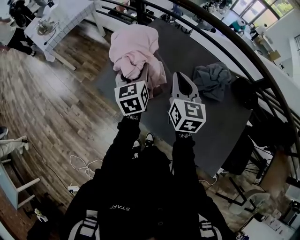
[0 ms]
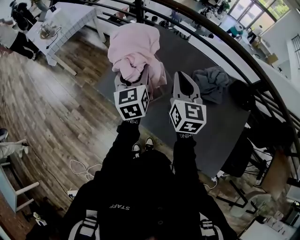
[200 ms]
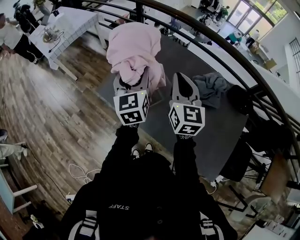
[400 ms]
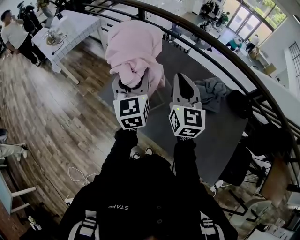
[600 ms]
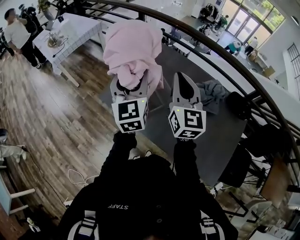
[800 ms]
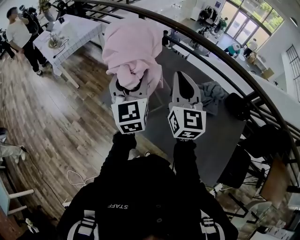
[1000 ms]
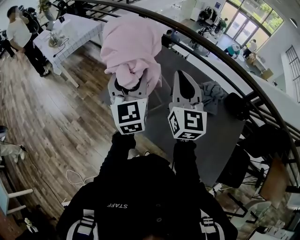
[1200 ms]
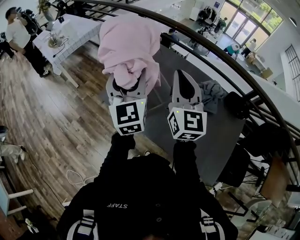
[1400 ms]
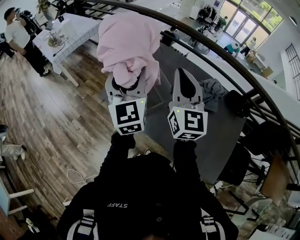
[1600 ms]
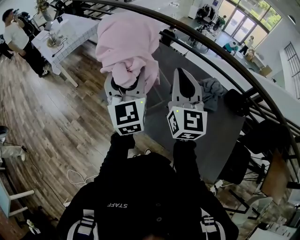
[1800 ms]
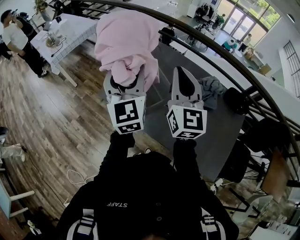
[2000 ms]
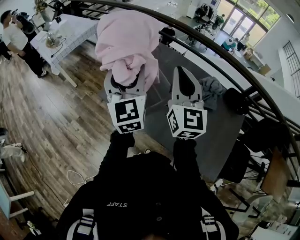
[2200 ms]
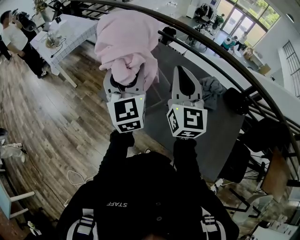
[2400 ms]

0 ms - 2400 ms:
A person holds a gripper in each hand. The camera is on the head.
0 ms - 1200 ms: The left gripper goes roughly 20 cm upward and backward, and turns by about 30 degrees. Meanwhile the right gripper shifts about 15 cm upward, and turns by some 20 degrees.
1200 ms - 2400 ms: There are only small adjustments of the grippers.

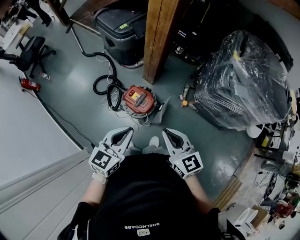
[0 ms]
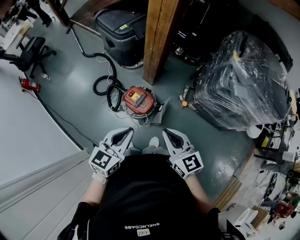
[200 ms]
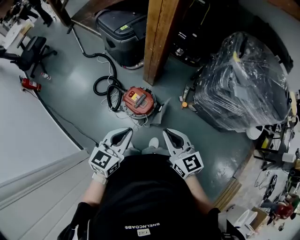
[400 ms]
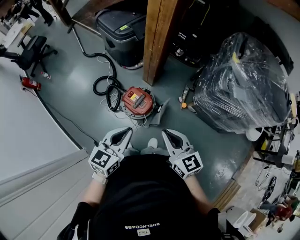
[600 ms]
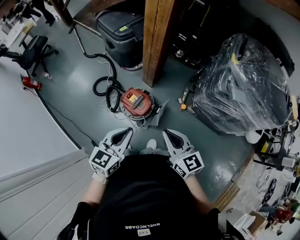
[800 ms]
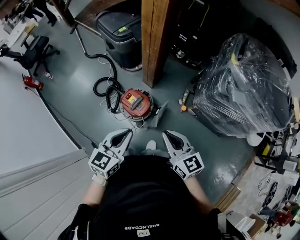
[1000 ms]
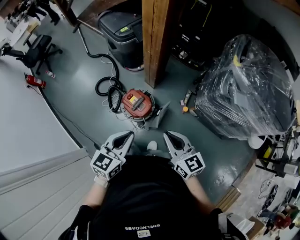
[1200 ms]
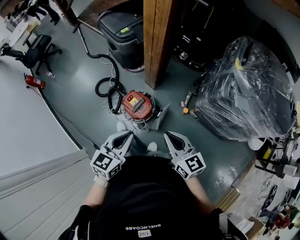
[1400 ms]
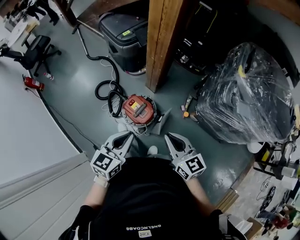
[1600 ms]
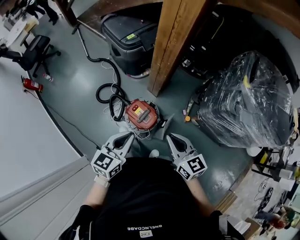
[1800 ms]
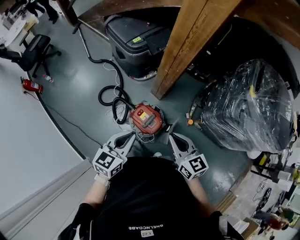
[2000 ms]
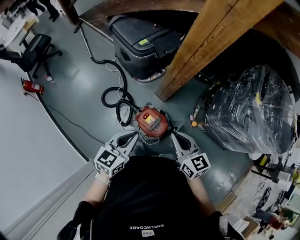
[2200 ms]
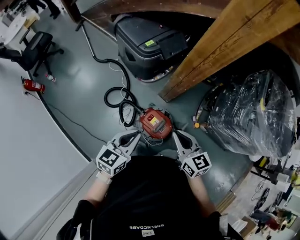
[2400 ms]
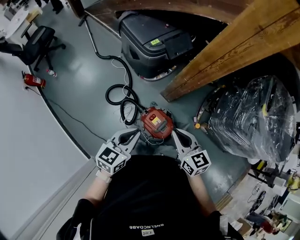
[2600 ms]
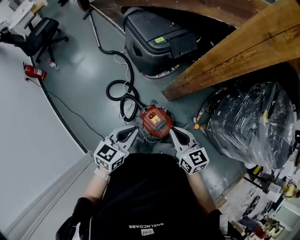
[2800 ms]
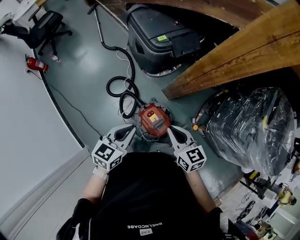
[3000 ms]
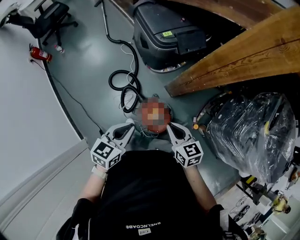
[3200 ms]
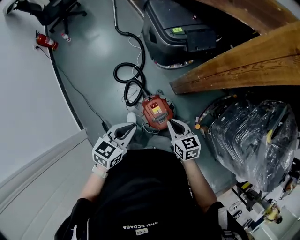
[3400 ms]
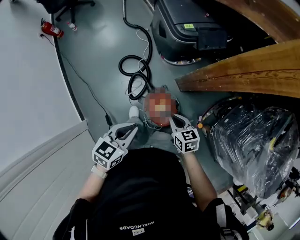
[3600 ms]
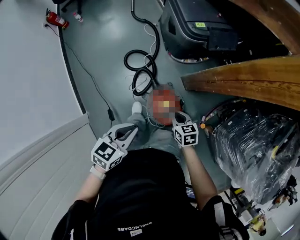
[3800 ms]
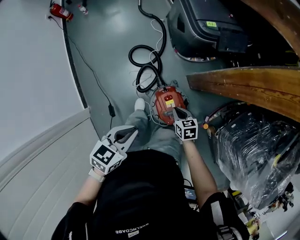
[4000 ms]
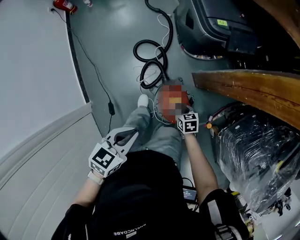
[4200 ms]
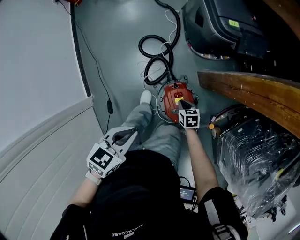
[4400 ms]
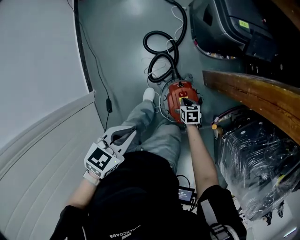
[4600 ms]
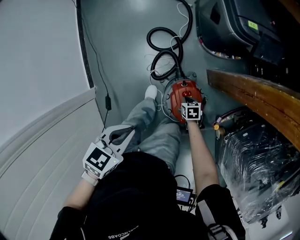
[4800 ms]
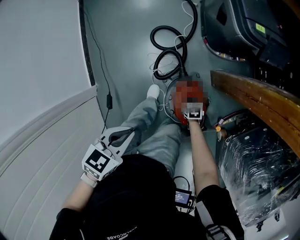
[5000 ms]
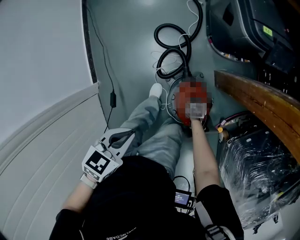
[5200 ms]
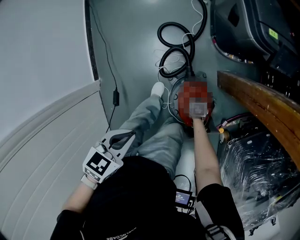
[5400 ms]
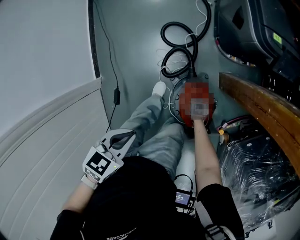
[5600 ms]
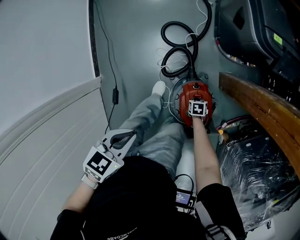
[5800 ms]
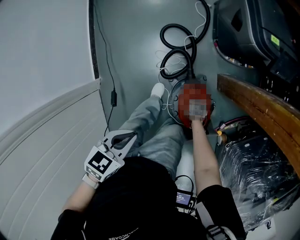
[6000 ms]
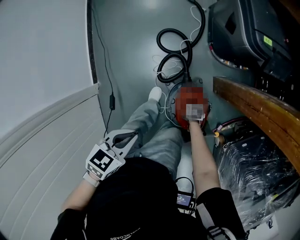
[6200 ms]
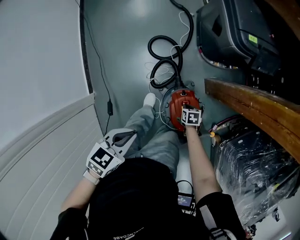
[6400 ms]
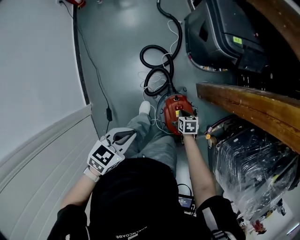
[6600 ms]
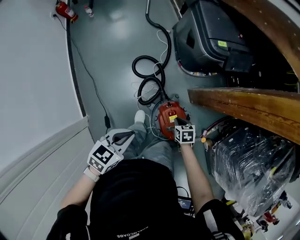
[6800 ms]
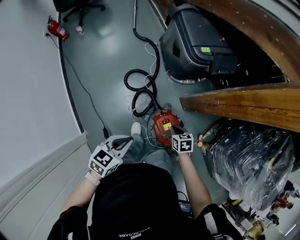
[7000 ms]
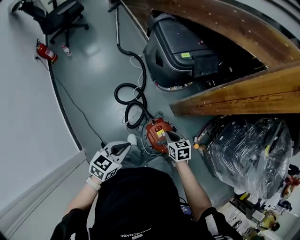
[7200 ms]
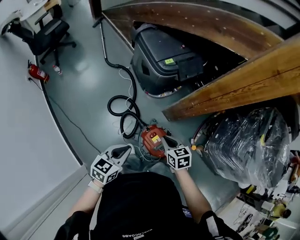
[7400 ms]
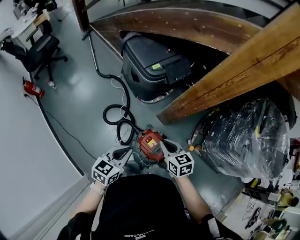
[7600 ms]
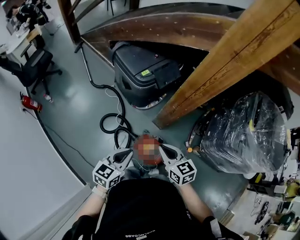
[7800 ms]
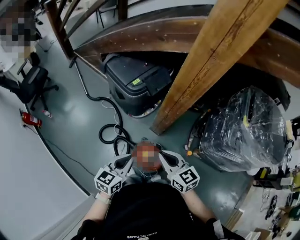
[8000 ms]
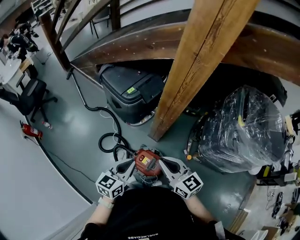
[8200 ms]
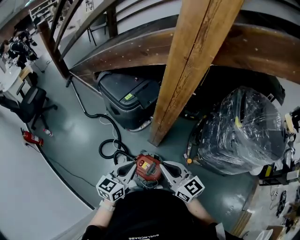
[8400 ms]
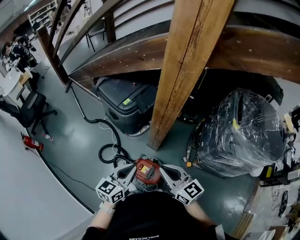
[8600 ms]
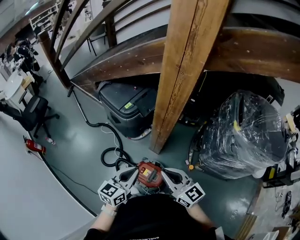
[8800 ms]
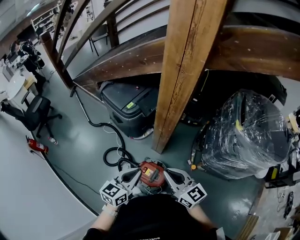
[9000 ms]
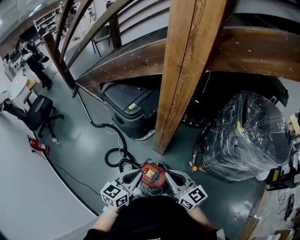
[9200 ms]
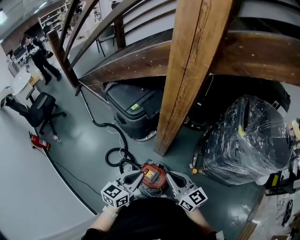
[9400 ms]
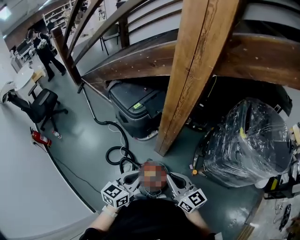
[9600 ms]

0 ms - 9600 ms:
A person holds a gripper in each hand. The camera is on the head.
0 ms - 1600 ms: Both grippers move forward, some 5 cm.
1600 ms - 3200 ms: The right gripper moves forward and to the left, roughly 30 cm, and swivels approximately 20 degrees. The left gripper moves to the left and forward, approximately 25 cm.
3200 ms - 4800 ms: The left gripper travels downward, to the left and backward by some 20 cm, and swivels about 20 degrees. Meanwhile the right gripper goes approximately 40 cm downward, and points its fingers about 40 degrees further downward.
4800 ms - 6400 ms: The right gripper goes downward and returns, approximately 10 cm each way.
6400 ms - 8000 ms: The right gripper is displaced upward by roughly 60 cm, and tips its fingers upward by roughly 60 degrees, while the left gripper moves upward, roughly 20 cm, and rotates approximately 40 degrees.
8000 ms - 9600 ms: The left gripper heads to the right and upward, covering approximately 10 cm, while the right gripper moves to the right, some 10 cm.

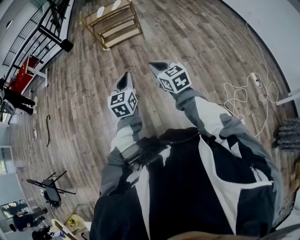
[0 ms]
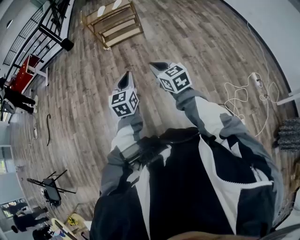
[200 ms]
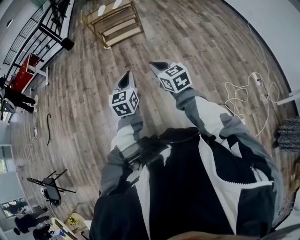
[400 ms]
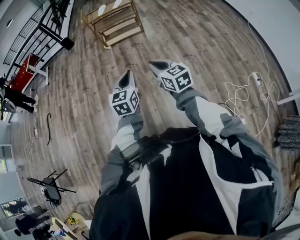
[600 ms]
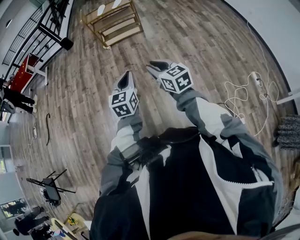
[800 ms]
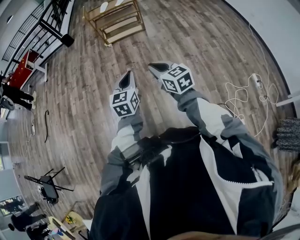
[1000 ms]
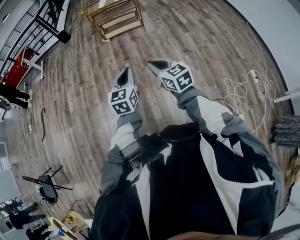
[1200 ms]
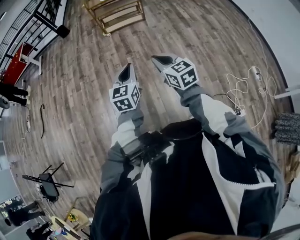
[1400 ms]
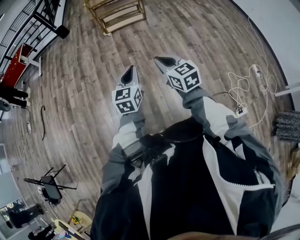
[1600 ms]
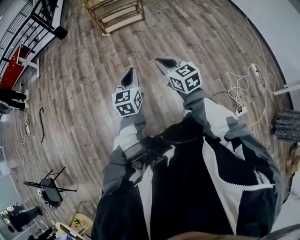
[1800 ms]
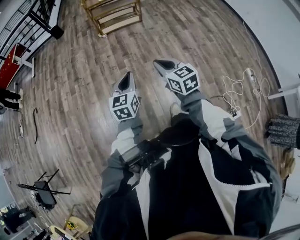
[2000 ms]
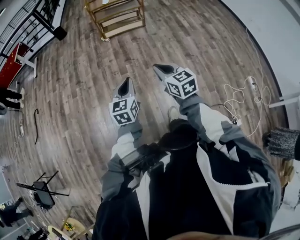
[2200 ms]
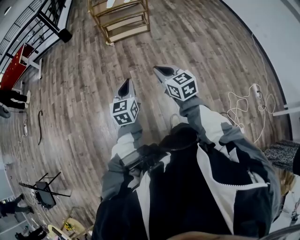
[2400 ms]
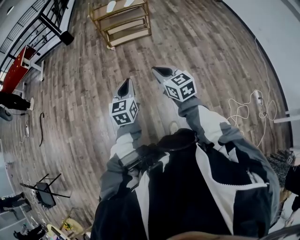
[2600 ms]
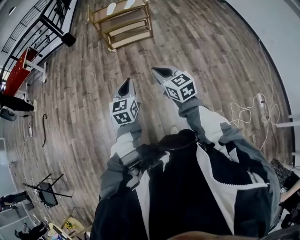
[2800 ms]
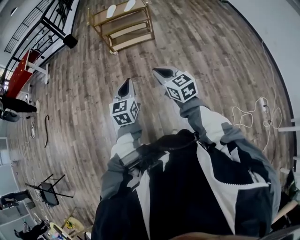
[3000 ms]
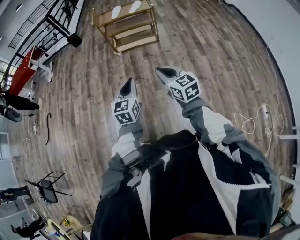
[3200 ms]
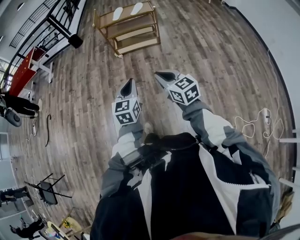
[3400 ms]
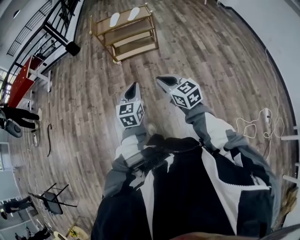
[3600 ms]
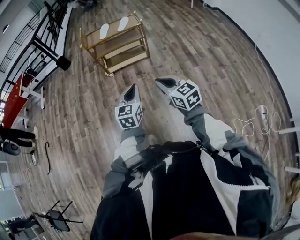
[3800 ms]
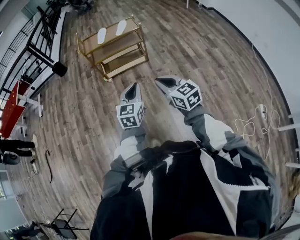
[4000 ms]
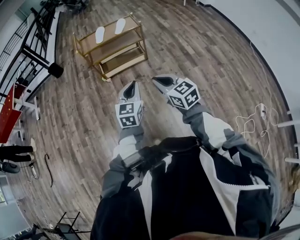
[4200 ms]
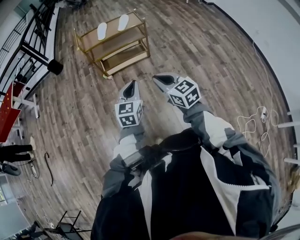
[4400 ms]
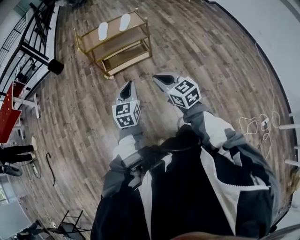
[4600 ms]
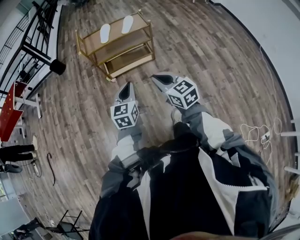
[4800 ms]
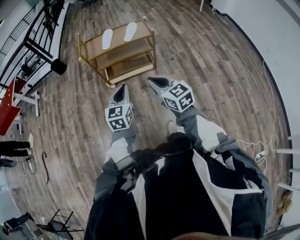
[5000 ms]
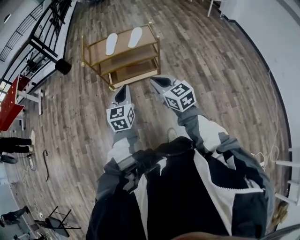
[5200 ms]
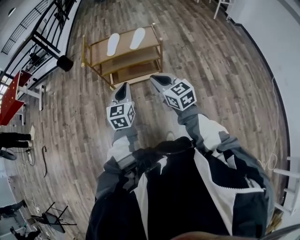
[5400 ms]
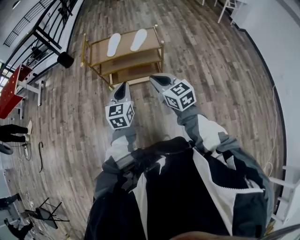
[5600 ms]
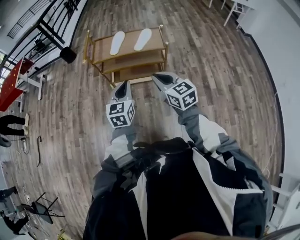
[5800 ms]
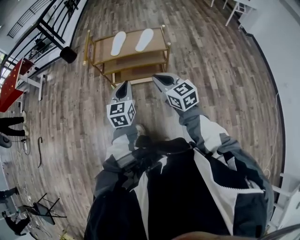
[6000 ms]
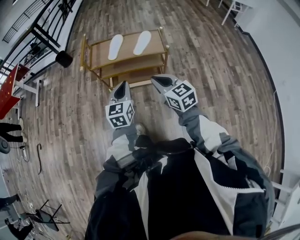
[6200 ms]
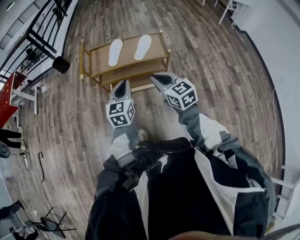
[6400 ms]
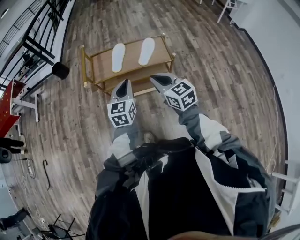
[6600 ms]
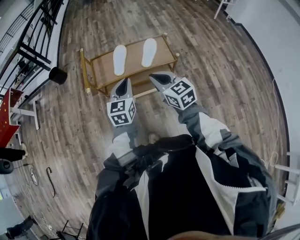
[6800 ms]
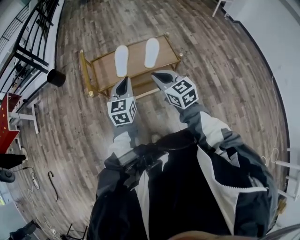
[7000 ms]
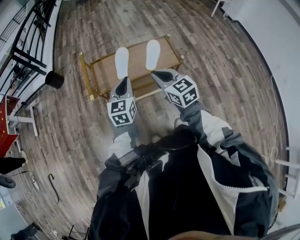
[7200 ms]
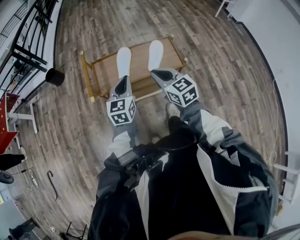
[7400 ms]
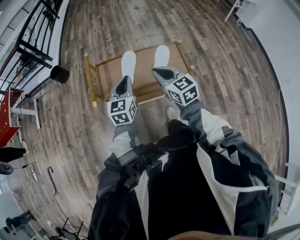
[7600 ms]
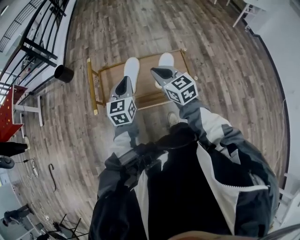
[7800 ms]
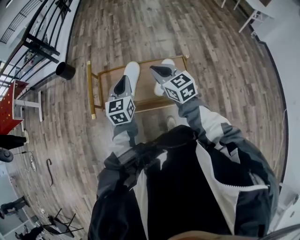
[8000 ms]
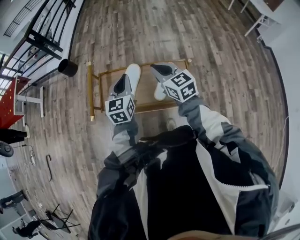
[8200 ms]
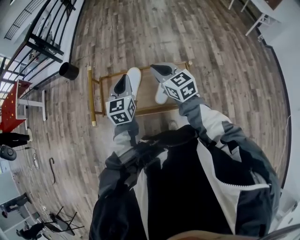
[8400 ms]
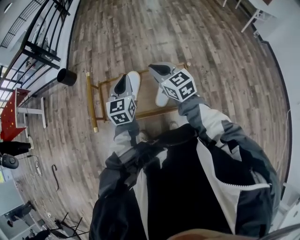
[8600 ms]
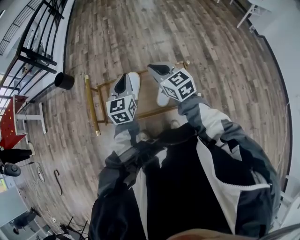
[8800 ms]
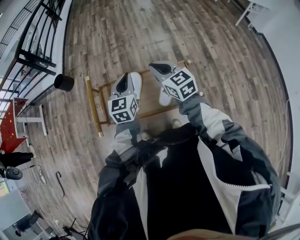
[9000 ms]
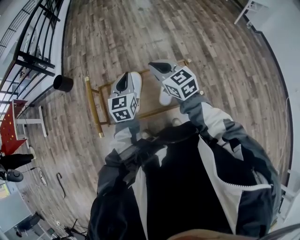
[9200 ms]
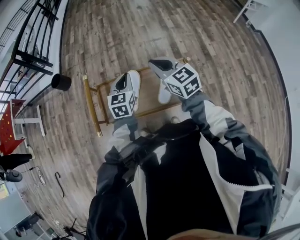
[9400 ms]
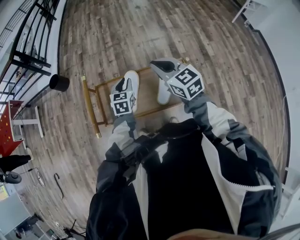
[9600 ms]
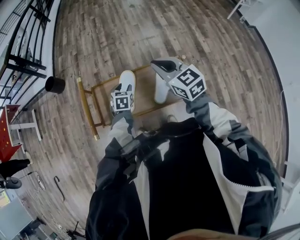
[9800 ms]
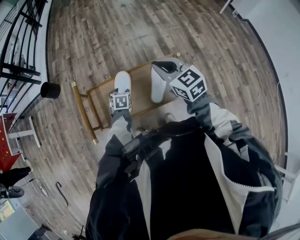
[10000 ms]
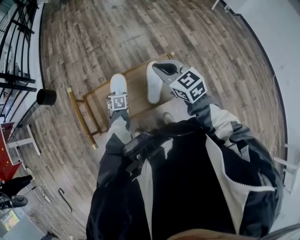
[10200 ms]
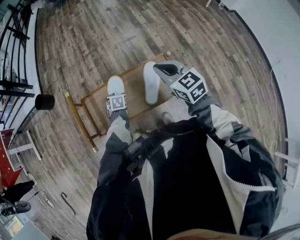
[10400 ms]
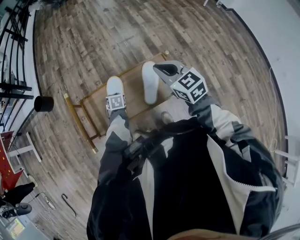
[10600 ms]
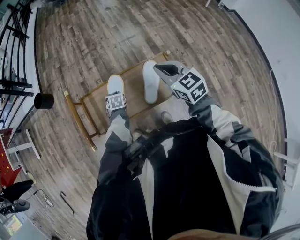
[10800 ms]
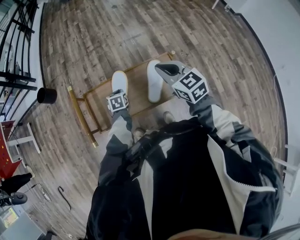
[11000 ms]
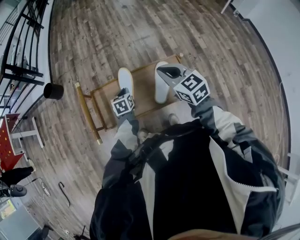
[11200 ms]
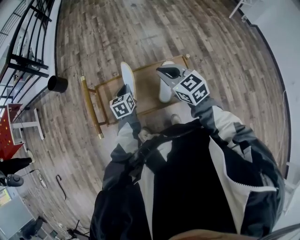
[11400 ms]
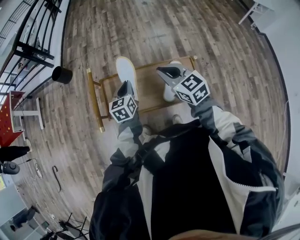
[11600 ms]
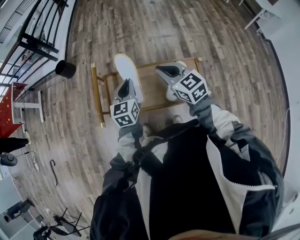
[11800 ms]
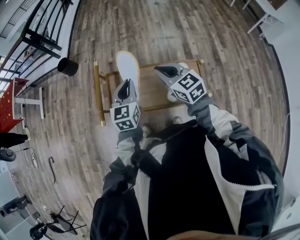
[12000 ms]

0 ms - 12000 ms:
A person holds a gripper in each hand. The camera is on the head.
0 ms - 1600 ms: Both grippers move to the left, approximately 15 cm. The right gripper opens, then closes again.
1600 ms - 3000 ms: Both grippers travel together forward and to the right, roughly 25 cm.
3000 ms - 4400 ms: The two grippers go some 30 cm forward.
4400 ms - 6000 ms: The grippers both shift forward by about 30 cm.
6000 ms - 7600 ms: Both grippers travel together forward, about 35 cm.
7600 ms - 9000 ms: The two grippers go some 20 cm forward.
9000 ms - 10400 ms: The left gripper is displaced downward by some 30 cm, tips its fingers downward by some 50 degrees, and opens up. Meanwhile the right gripper is displaced to the right by about 10 cm.
10400 ms - 12000 ms: The left gripper travels upward by approximately 25 cm, tips its fingers upward by approximately 40 degrees, and closes up. The right gripper heads to the left, covering roughly 15 cm.
